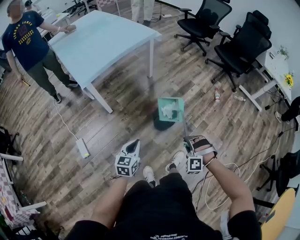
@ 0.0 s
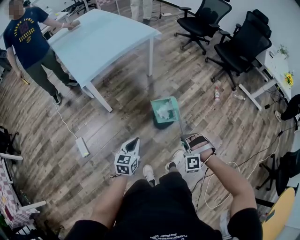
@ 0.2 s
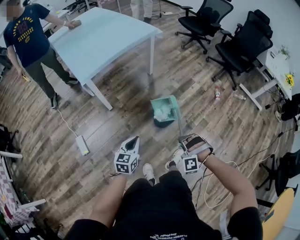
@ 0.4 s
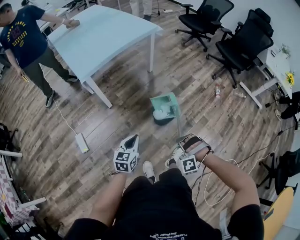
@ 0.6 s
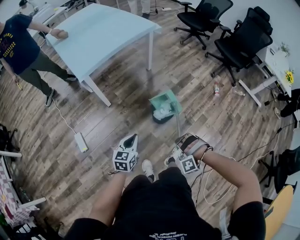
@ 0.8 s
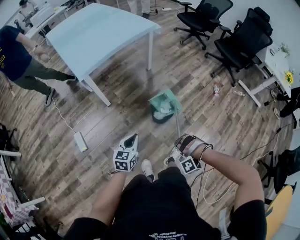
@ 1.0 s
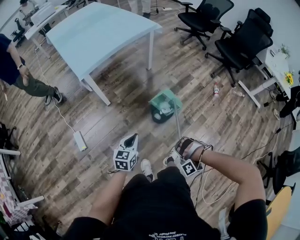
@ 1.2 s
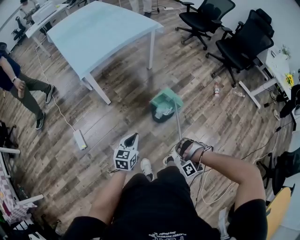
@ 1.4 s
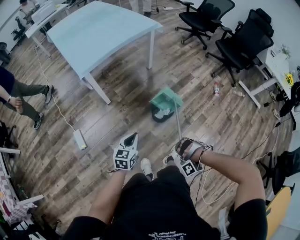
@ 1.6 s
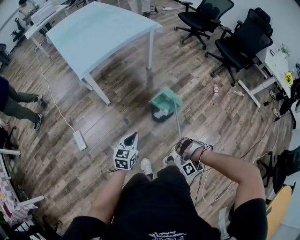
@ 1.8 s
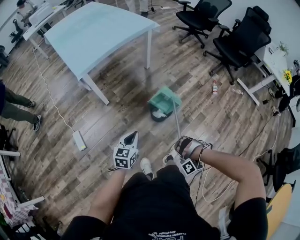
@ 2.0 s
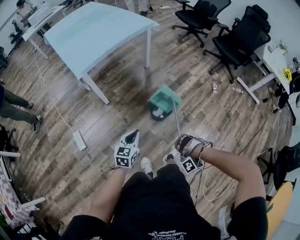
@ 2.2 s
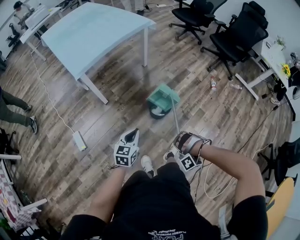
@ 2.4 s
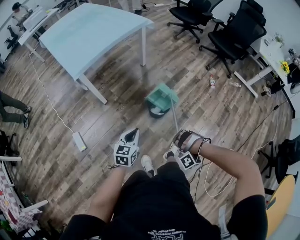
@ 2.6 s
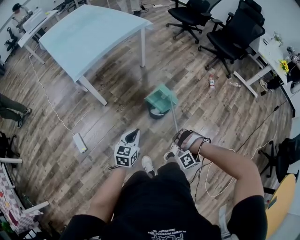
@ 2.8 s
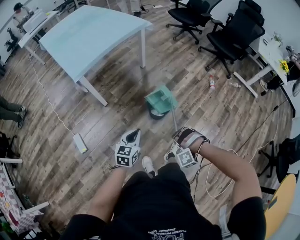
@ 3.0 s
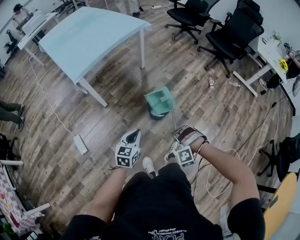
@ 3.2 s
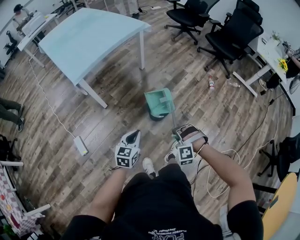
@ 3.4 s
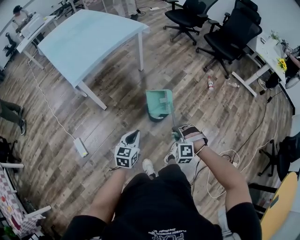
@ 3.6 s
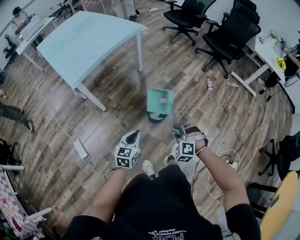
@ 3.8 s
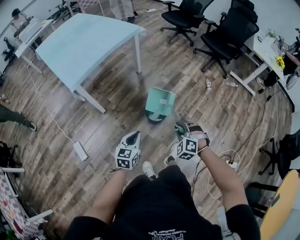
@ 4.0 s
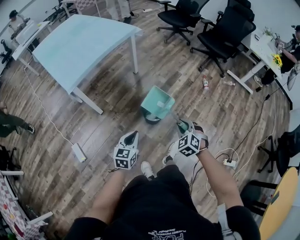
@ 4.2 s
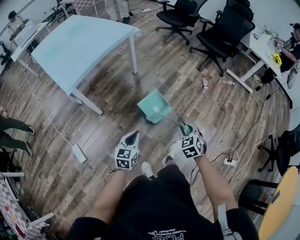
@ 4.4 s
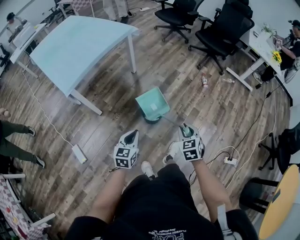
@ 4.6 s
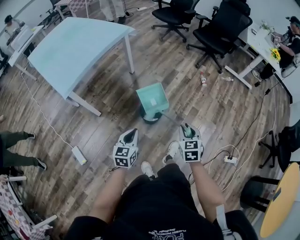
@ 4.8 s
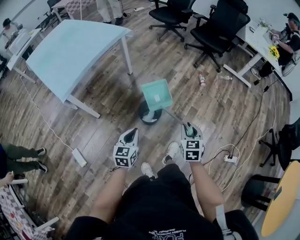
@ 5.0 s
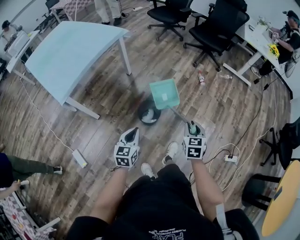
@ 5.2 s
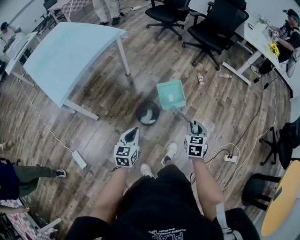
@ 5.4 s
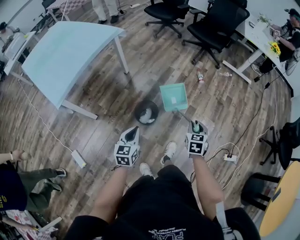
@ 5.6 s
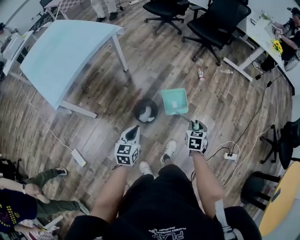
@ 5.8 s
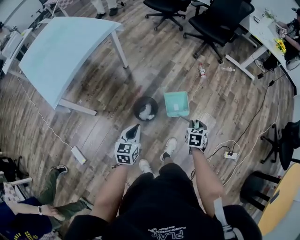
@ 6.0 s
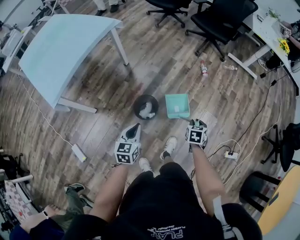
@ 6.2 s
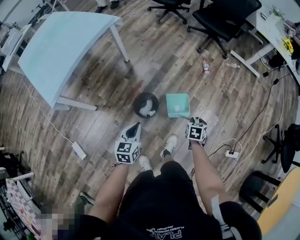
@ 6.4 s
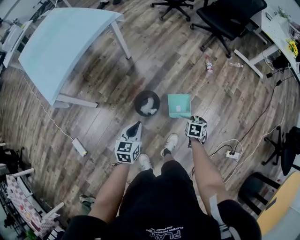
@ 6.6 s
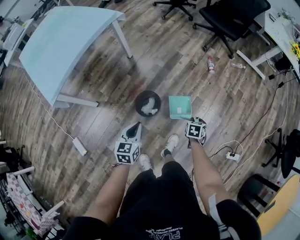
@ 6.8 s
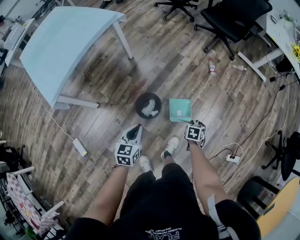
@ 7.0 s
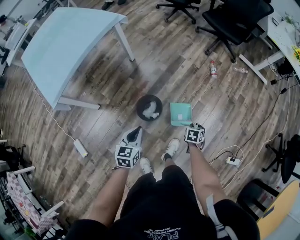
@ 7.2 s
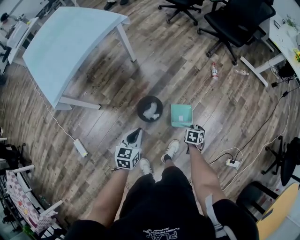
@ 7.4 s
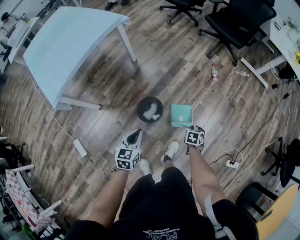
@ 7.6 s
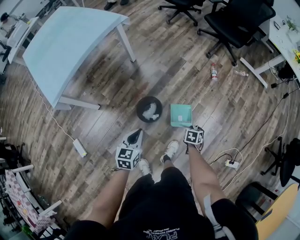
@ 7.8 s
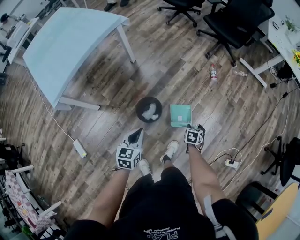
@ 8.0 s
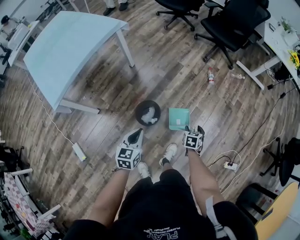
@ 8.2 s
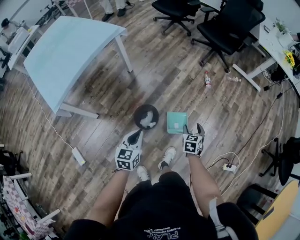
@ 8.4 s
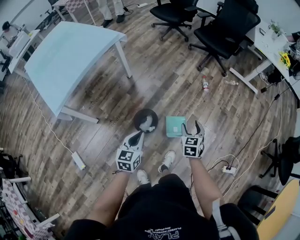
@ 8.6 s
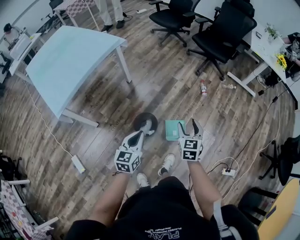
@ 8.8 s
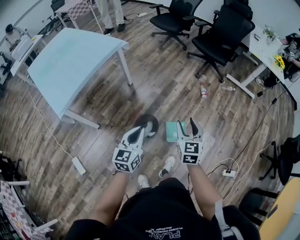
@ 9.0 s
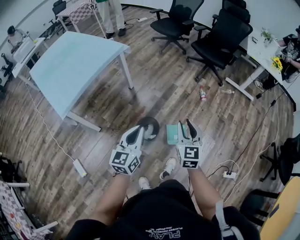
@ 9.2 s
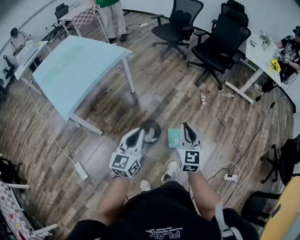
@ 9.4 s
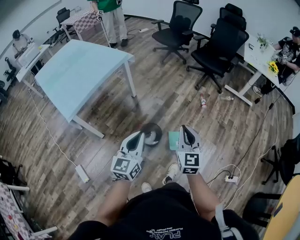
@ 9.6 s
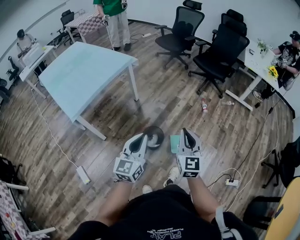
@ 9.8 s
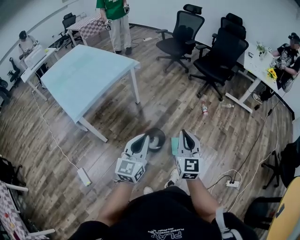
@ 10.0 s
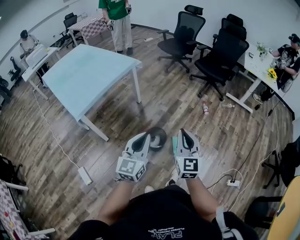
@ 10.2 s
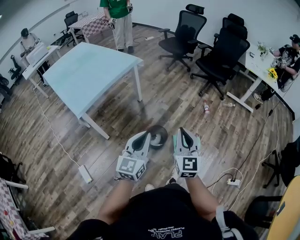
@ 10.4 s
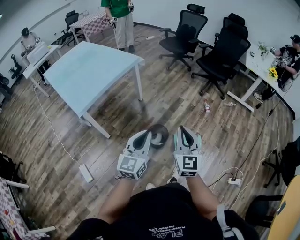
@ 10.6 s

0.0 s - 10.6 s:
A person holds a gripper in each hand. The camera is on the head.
0.0 s - 1.6 s: The right gripper goes approximately 10 cm backward and downward, and rolls counterclockwise, seen from behind, by roughly 50 degrees.
1.6 s - 3.0 s: The right gripper rotates some 20 degrees.
3.0 s - 4.6 s: The right gripper is displaced forward, upward and to the right by some 15 cm, and rolls clockwise, seen from behind, by some 110 degrees.
4.6 s - 6.0 s: The left gripper heads forward and to the right, covering some 15 cm; the right gripper is displaced to the right, forward and downward by approximately 20 cm, and changes its angle by roughly 30 degrees.
6.0 s - 7.6 s: The left gripper ends up some 5 cm from where it was. Meanwhile the right gripper moves downward and forward, some 15 cm.
7.6 s - 9.0 s: The right gripper moves upward, some 35 cm, tips its fingers upward by approximately 40 degrees, and opens its fingers, while the left gripper goes roughly 15 cm upward, and rotates about 20 degrees.
9.0 s - 10.6 s: The grippers both shift backward, upward and to the left by some 20 cm. The right gripper turns by roughly 20 degrees, and closes its fingers.

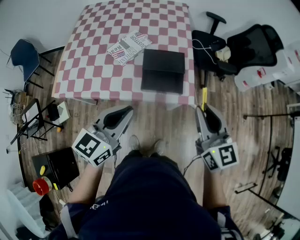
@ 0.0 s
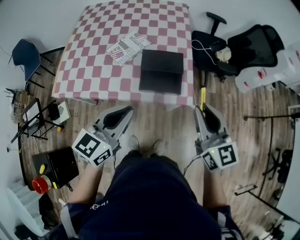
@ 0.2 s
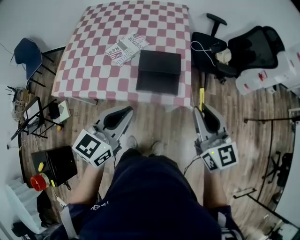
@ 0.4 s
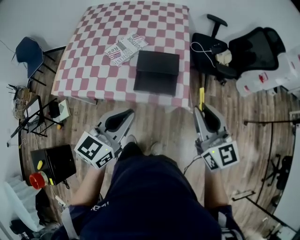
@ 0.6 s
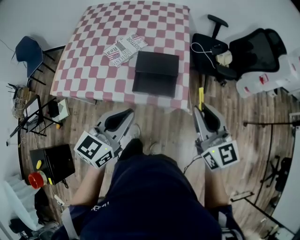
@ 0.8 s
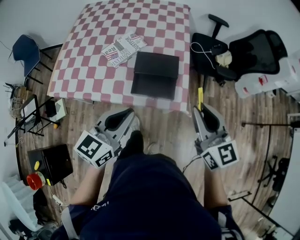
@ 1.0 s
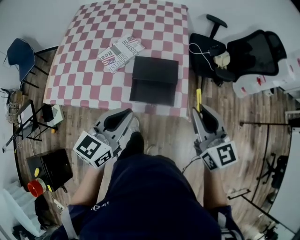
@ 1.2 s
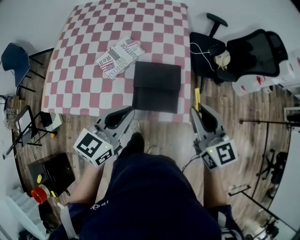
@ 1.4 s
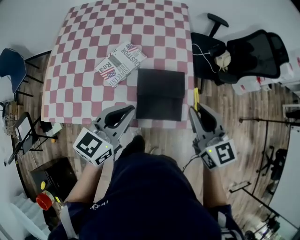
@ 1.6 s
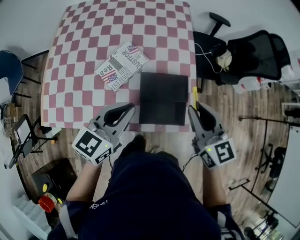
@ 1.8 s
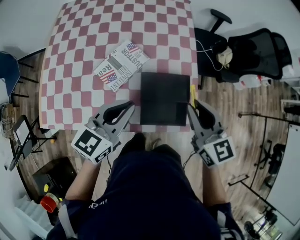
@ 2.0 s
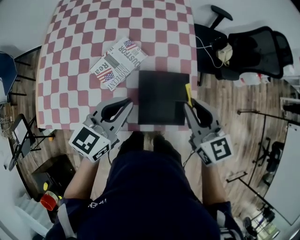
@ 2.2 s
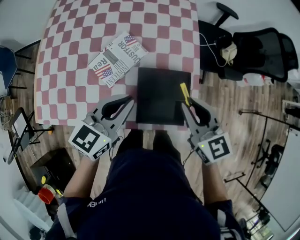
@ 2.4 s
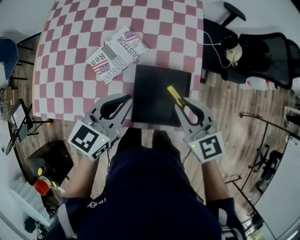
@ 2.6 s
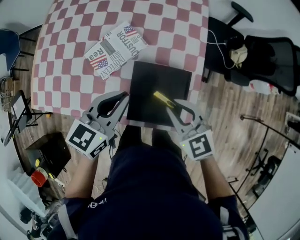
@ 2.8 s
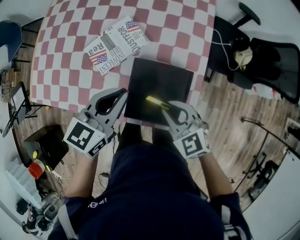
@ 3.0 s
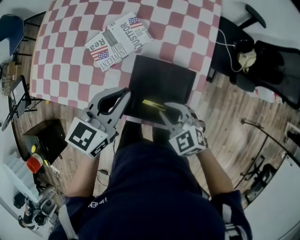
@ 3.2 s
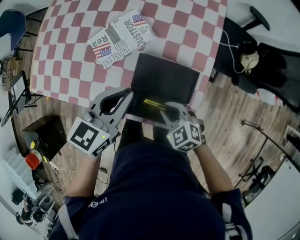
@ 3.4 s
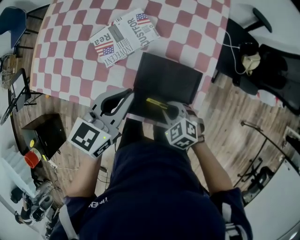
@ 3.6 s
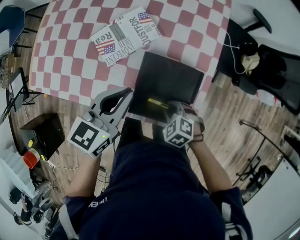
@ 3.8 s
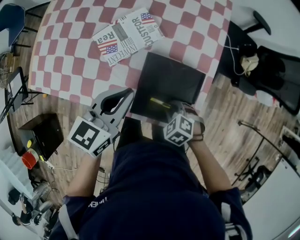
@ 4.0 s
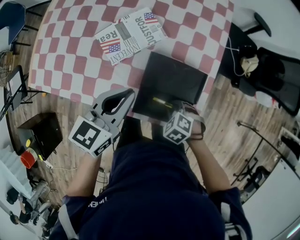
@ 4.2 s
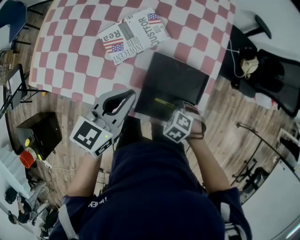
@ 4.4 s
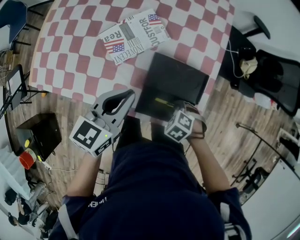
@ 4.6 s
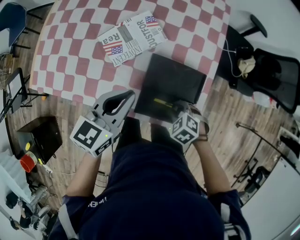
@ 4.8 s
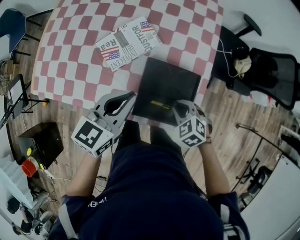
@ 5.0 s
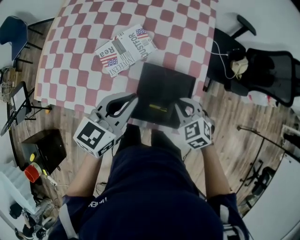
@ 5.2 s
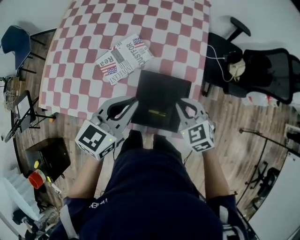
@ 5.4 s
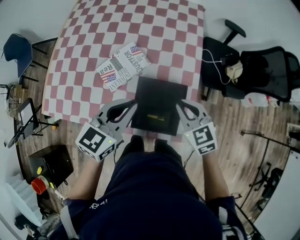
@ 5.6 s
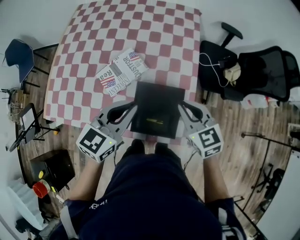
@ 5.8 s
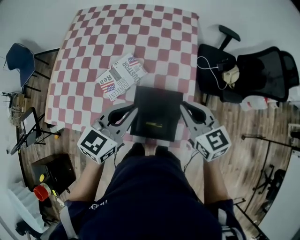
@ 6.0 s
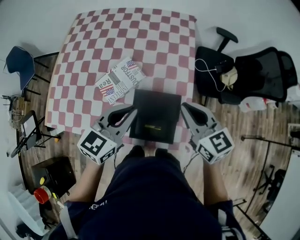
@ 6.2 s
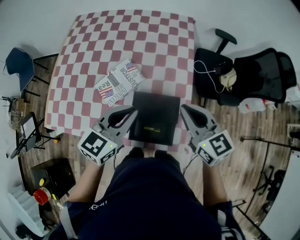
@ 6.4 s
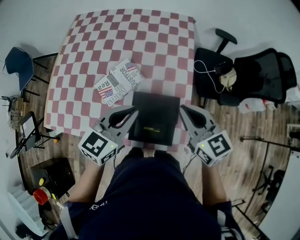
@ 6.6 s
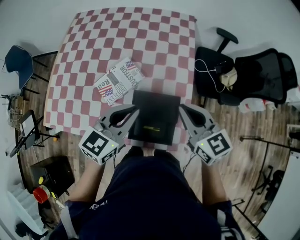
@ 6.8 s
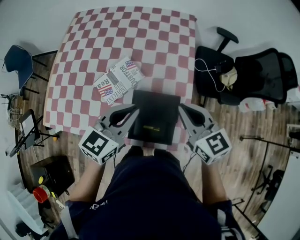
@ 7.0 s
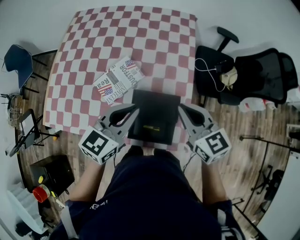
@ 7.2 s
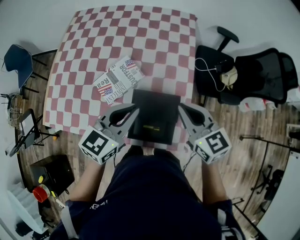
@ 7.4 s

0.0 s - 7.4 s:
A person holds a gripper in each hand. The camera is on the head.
0.0 s - 1.4 s: Both grippers travel together forward, some 15 cm.
1.4 s - 3.0 s: The left gripper travels forward and downward by approximately 15 cm; the right gripper heads downward, forward and to the left, covering roughly 20 cm, and changes its angle by approximately 40 degrees.
3.0 s - 4.4 s: The right gripper is displaced downward by roughly 15 cm, and angles its fingers downward, by about 40 degrees. Meanwhile the left gripper shifts by approximately 5 cm.
4.4 s - 6.0 s: The left gripper travels upward by roughly 10 cm. Meanwhile the right gripper heads upward, covering about 30 cm, and tips its fingers upward by about 60 degrees.
6.0 s - 7.4 s: The grippers move only a little.

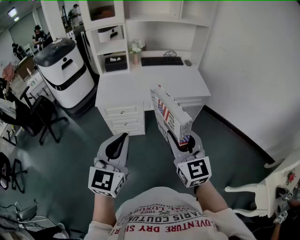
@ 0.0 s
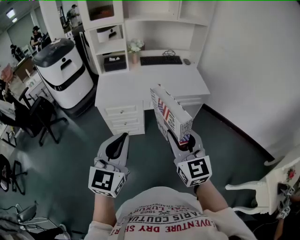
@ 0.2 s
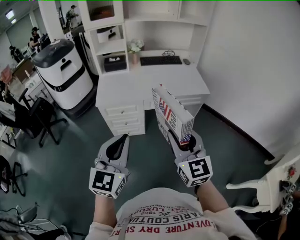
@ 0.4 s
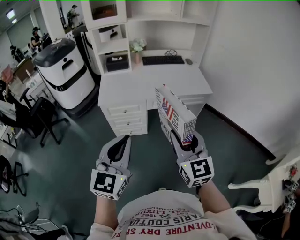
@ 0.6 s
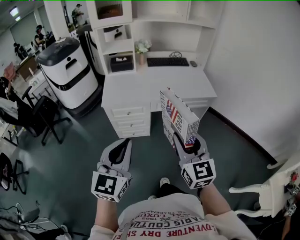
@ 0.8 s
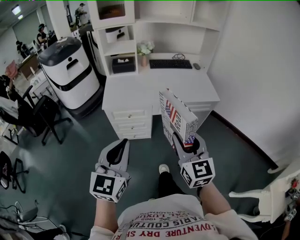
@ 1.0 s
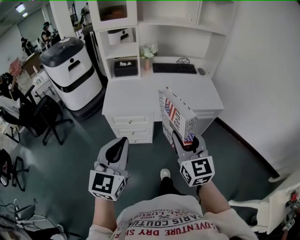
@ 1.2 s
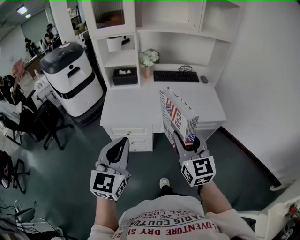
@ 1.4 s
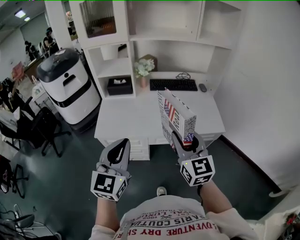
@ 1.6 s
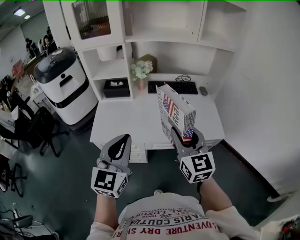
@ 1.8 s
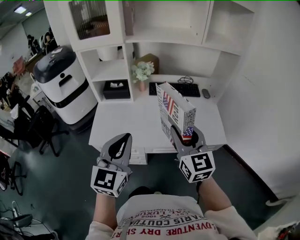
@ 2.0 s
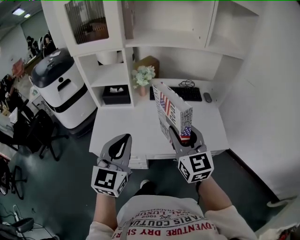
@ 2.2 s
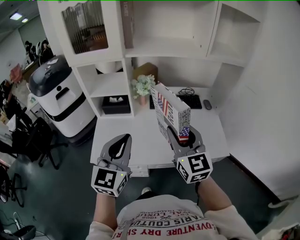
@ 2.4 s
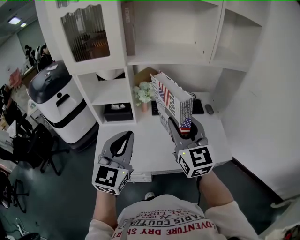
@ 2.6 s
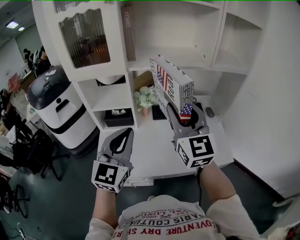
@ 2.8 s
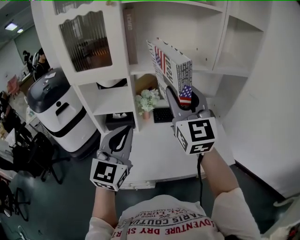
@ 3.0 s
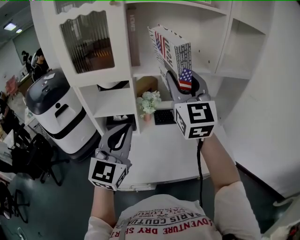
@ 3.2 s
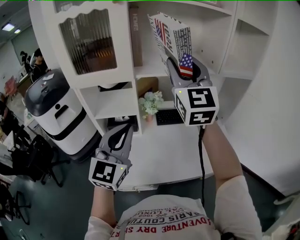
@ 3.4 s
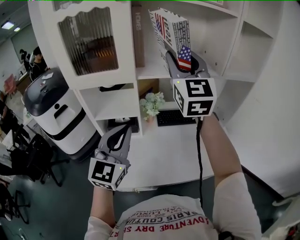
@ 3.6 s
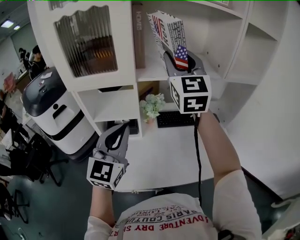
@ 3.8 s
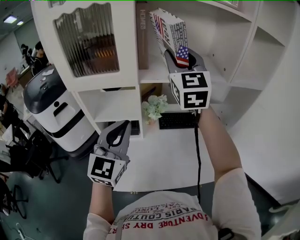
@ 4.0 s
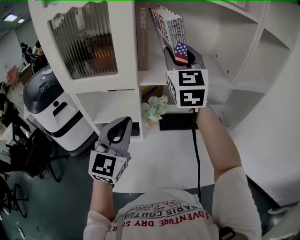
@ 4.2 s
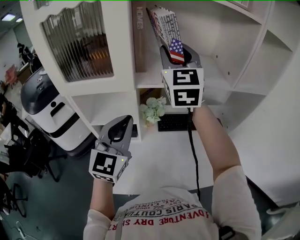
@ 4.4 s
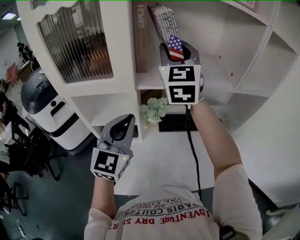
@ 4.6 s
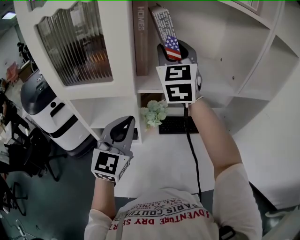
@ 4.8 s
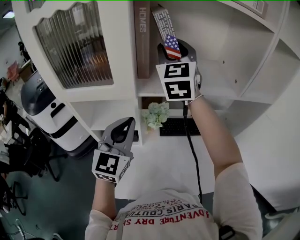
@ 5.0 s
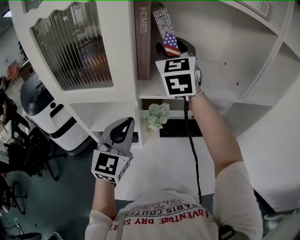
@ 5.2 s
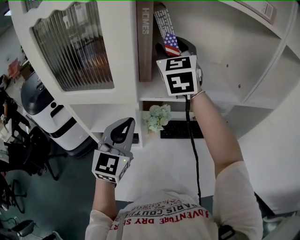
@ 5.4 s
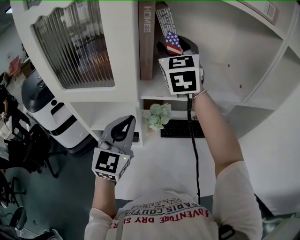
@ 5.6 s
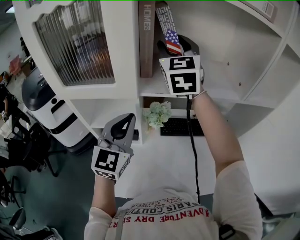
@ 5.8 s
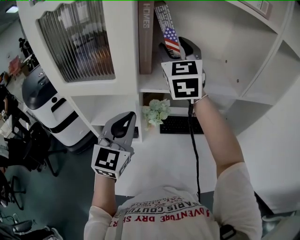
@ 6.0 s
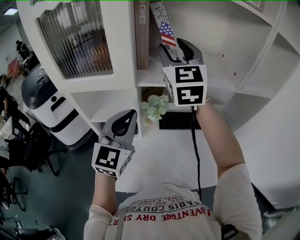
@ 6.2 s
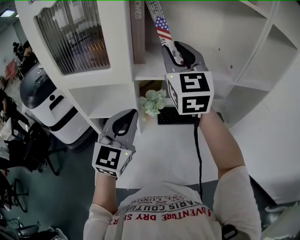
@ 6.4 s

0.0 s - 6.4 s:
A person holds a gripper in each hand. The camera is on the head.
0.0 s - 1.6 s: The two grippers go about 25 cm forward.
1.6 s - 3.2 s: The right gripper goes some 40 cm forward and upward, and turns by about 20 degrees. The left gripper shifts some 30 cm forward.
3.2 s - 4.8 s: Both grippers move forward, roughly 20 cm.
4.8 s - 6.4 s: The right gripper heads backward, covering some 5 cm.
